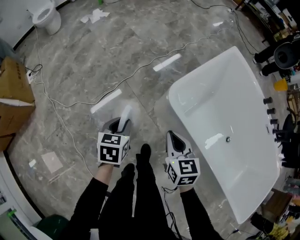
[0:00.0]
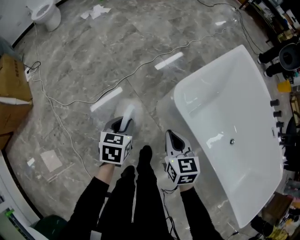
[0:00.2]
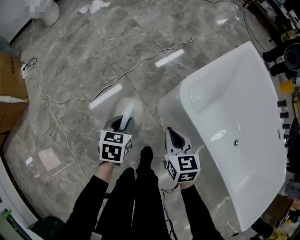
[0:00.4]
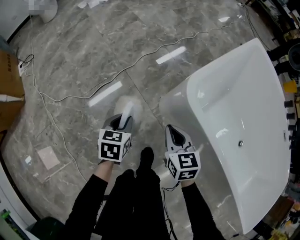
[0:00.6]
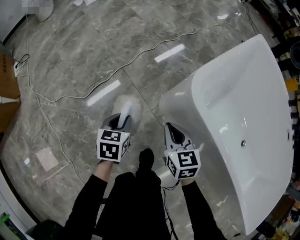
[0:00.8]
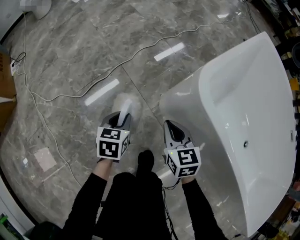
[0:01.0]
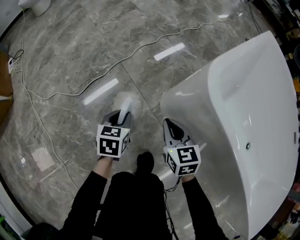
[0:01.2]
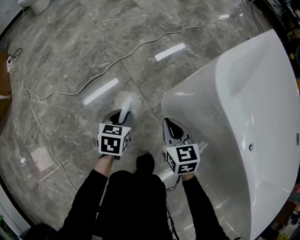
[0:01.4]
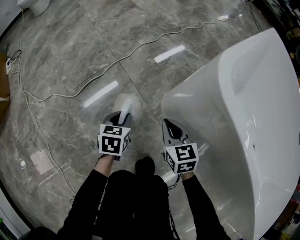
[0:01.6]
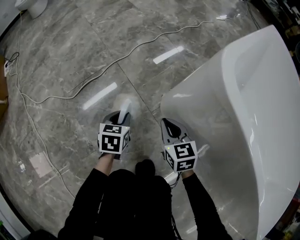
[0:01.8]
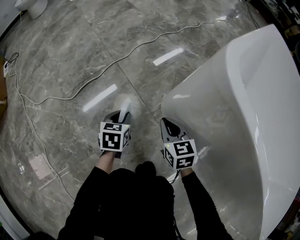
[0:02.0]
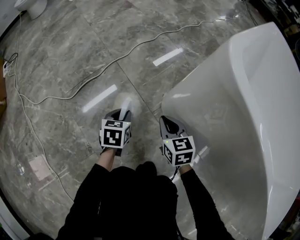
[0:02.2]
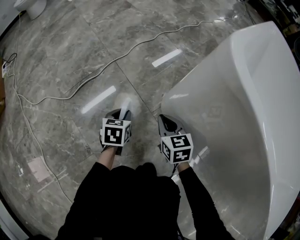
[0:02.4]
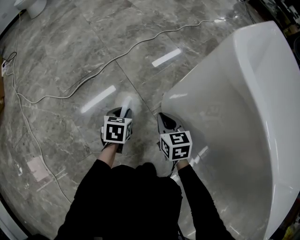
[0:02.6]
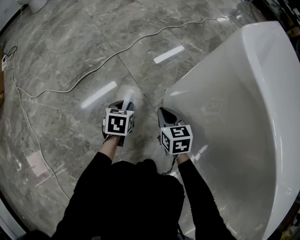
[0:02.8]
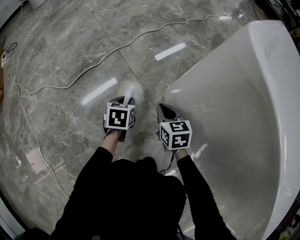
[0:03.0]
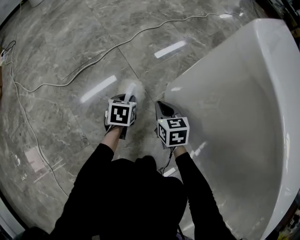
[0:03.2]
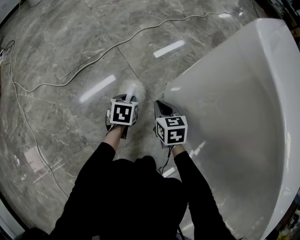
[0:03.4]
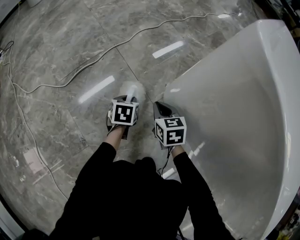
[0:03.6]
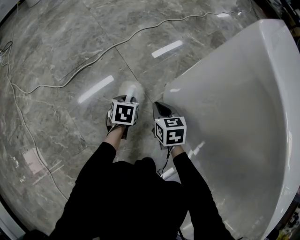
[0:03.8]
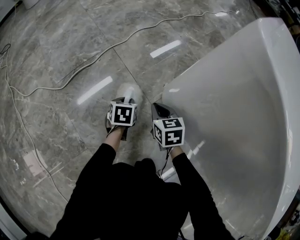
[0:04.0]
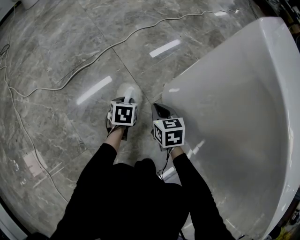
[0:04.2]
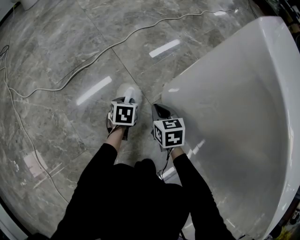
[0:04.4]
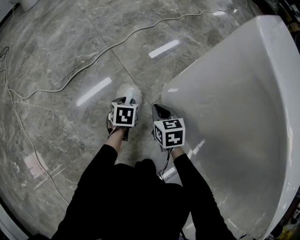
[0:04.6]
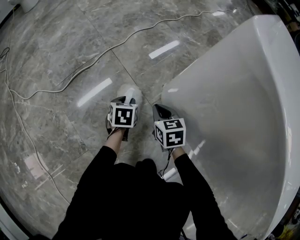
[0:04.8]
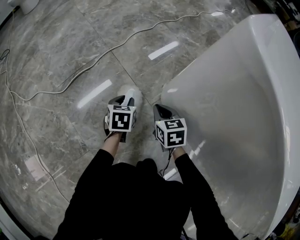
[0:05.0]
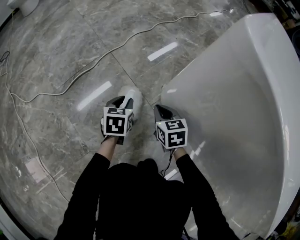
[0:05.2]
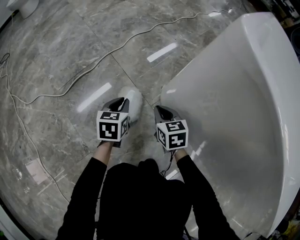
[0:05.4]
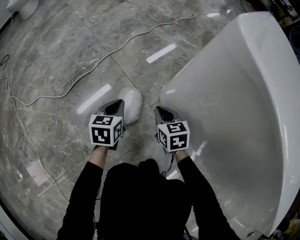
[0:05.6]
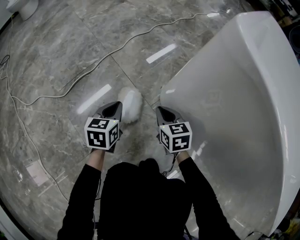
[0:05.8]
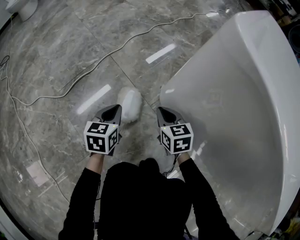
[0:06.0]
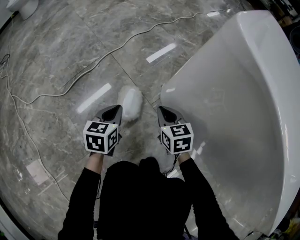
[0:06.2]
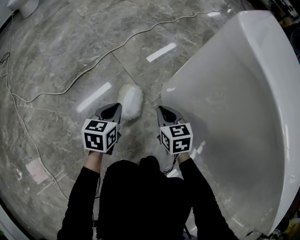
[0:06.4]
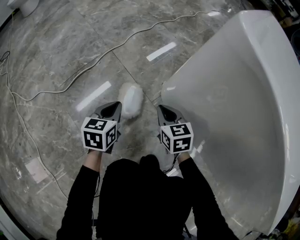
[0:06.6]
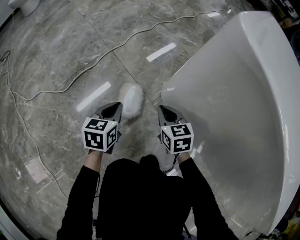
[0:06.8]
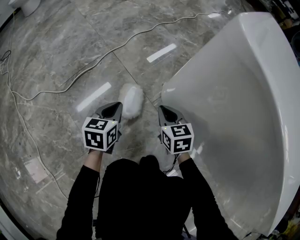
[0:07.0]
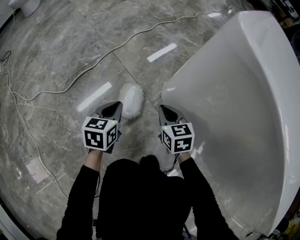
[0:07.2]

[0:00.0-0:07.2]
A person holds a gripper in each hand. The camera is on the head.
0:00.0 to 0:01.4: Both grippers move downward, approximately 35 cm.
0:01.4 to 0:02.8: Both grippers travel together downward, roughly 15 cm.
0:02.8 to 0:04.4: Both grippers move downward, approximately 5 cm.
0:04.4 to 0:05.8: The right gripper ends up some 5 cm from where it was; the left gripper travels upward by about 15 cm, turns by about 20 degrees, and closes its fingers.
0:05.8 to 0:07.2: The grippers make only small movements.

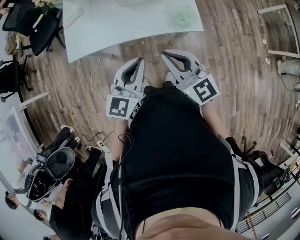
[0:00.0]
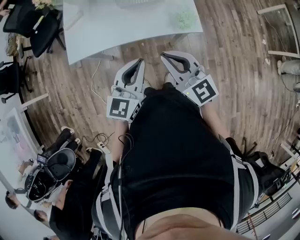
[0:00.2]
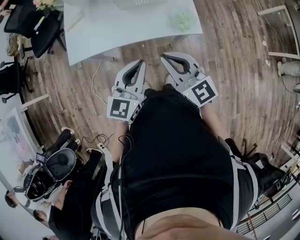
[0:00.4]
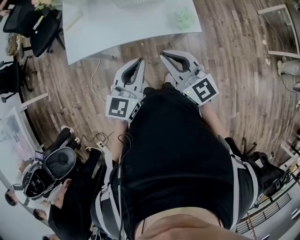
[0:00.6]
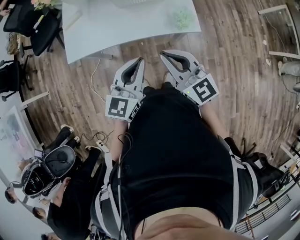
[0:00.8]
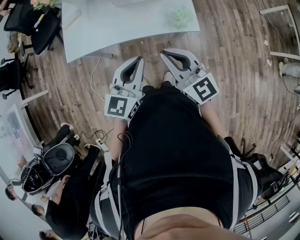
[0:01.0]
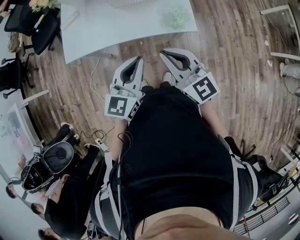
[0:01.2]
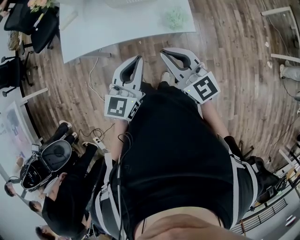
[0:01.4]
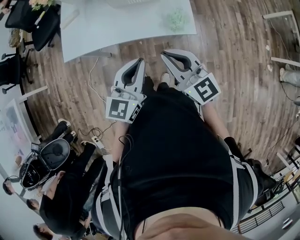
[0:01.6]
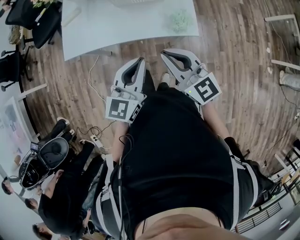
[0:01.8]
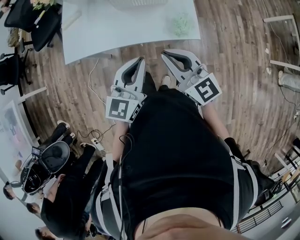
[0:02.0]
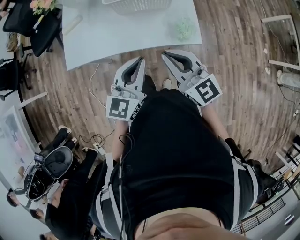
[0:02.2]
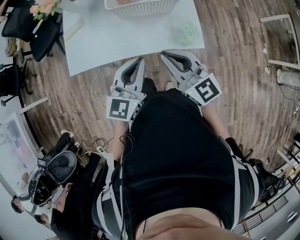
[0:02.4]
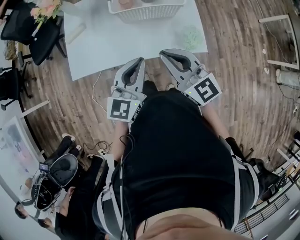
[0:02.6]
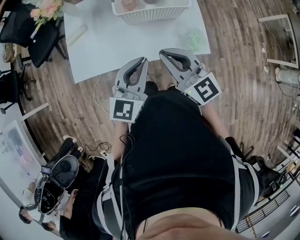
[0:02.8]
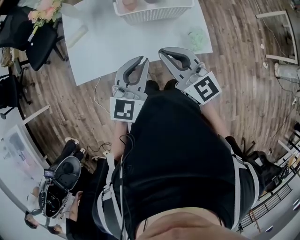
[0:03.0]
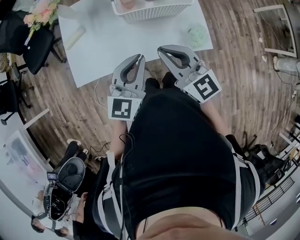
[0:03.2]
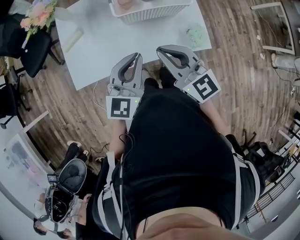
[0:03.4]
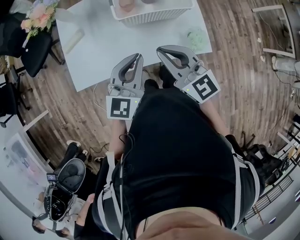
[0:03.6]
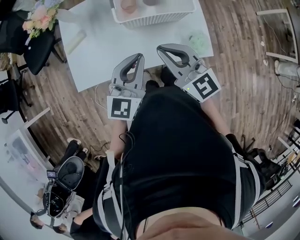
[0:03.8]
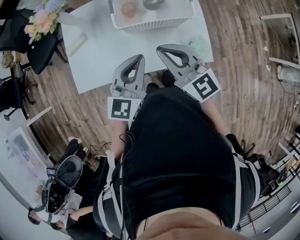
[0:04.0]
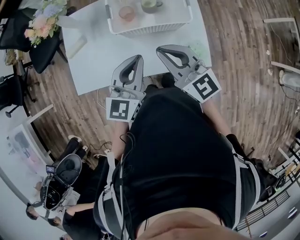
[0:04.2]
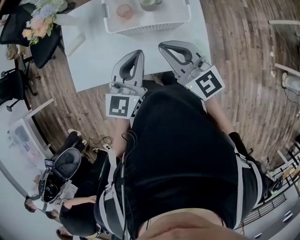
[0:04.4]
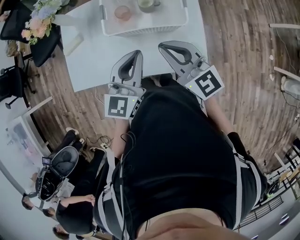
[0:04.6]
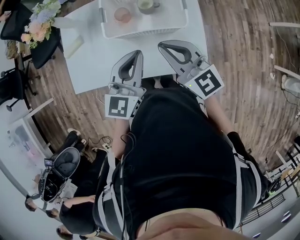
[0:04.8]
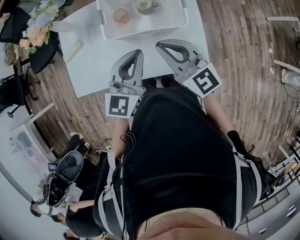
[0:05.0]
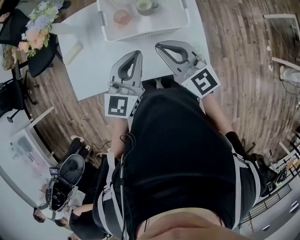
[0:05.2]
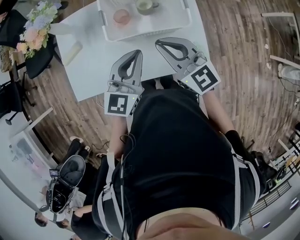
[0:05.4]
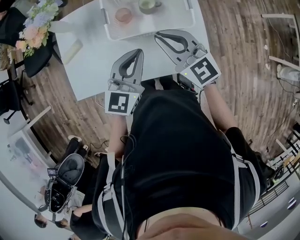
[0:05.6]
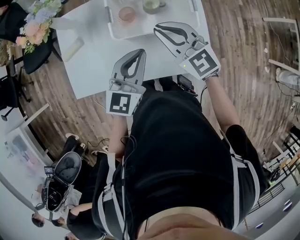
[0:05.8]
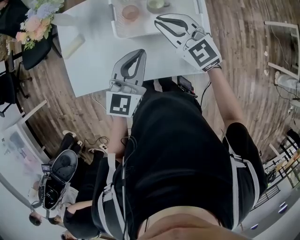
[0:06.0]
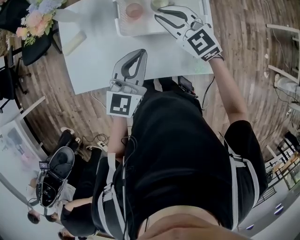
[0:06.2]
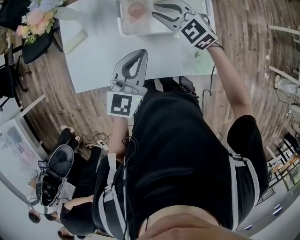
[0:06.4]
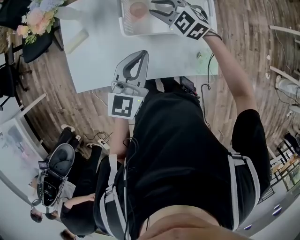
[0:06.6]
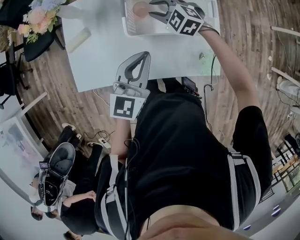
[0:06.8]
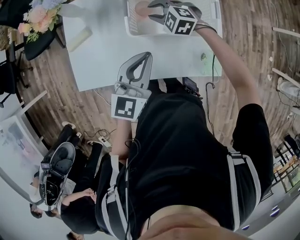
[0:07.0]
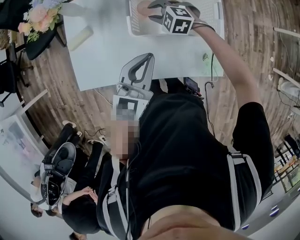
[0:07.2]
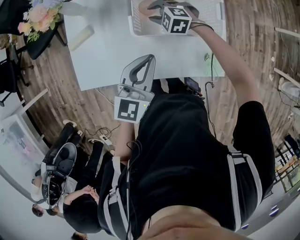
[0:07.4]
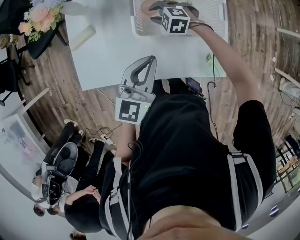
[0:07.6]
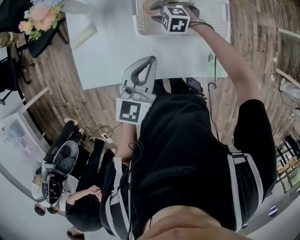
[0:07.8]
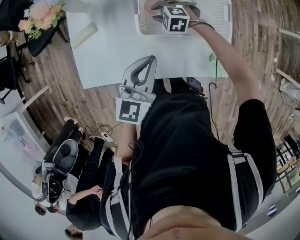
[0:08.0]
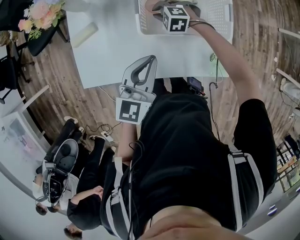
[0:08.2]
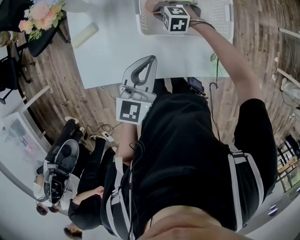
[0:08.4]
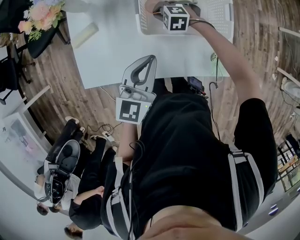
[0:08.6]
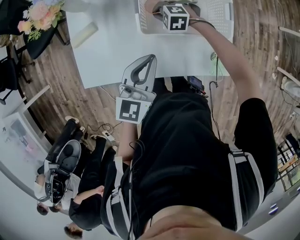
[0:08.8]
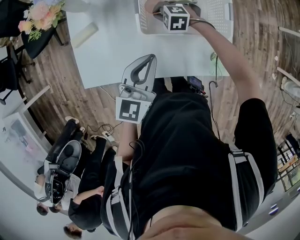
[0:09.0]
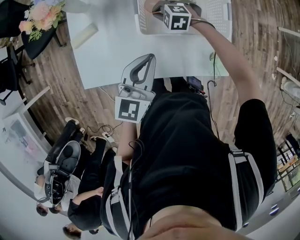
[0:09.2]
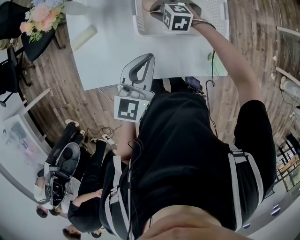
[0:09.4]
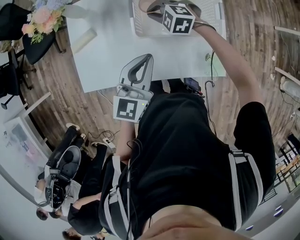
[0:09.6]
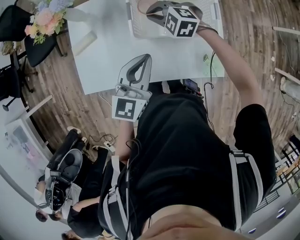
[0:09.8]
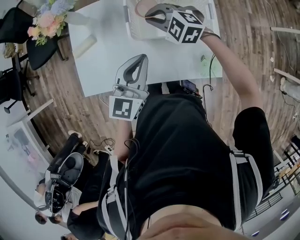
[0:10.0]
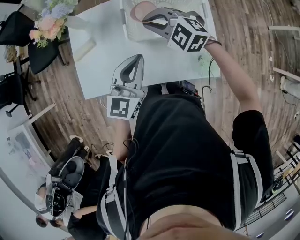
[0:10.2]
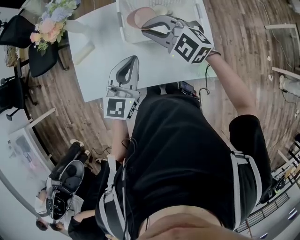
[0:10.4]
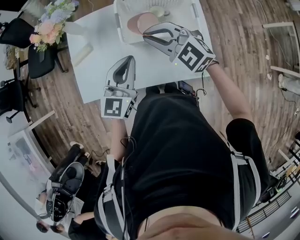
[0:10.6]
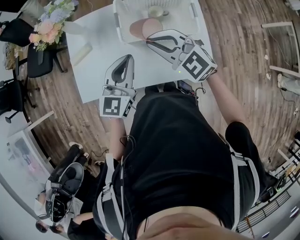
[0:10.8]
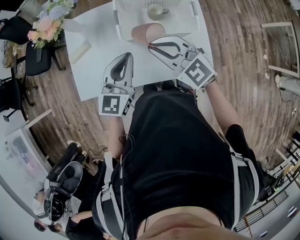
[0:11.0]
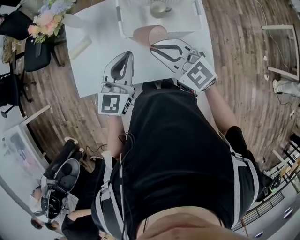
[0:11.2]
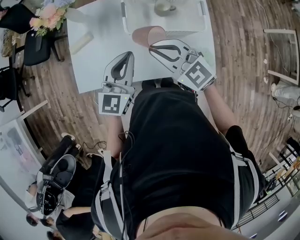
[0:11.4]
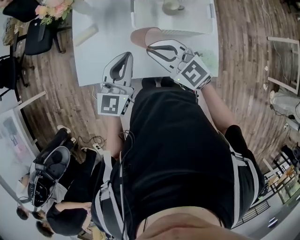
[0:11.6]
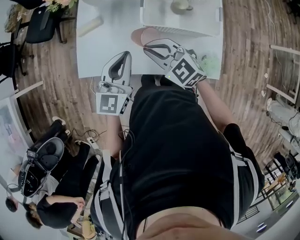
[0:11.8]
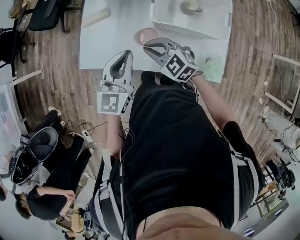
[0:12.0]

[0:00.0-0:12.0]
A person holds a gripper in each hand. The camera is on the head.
0:00.0 to 0:01.6: The two grippers go approximately 10 cm to the right.
0:01.6 to 0:03.0: The grippers both shift forward and to the left by approximately 20 cm.
0:03.0 to 0:04.4: The two grippers go about 15 cm forward and to the right.
0:04.4 to 0:06.0: The right gripper goes approximately 15 cm forward, and changes its angle by approximately 20 degrees. The left gripper shifts roughly 5 cm forward.
0:06.0 to 0:07.6: The right gripper is displaced downward and forward by some 25 cm, angles its fingers downward, by about 40 degrees, and opens up. The left gripper shifts by roughly 5 cm.
0:07.6 to 0:09.0: The right gripper closes.
0:09.0 to 0:10.4: The right gripper travels upward by roughly 25 cm, and points its fingers some 30 degrees further upward. Meanwhile the left gripper shifts approximately 5 cm upward.
0:10.4 to 0:12.0: The left gripper goes approximately 10 cm to the left, while the right gripper shifts some 20 cm to the left, downward and backward.

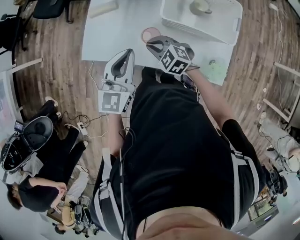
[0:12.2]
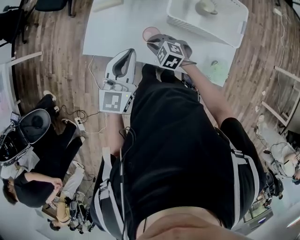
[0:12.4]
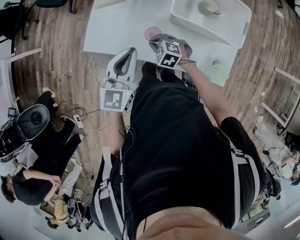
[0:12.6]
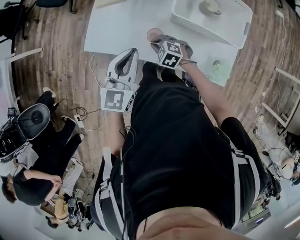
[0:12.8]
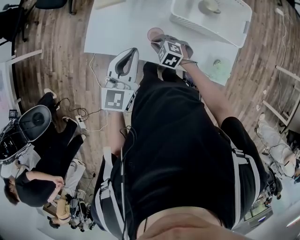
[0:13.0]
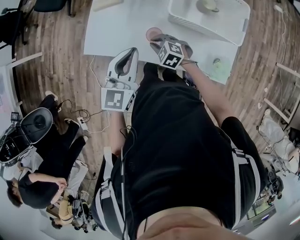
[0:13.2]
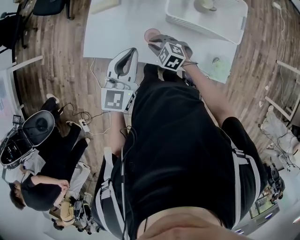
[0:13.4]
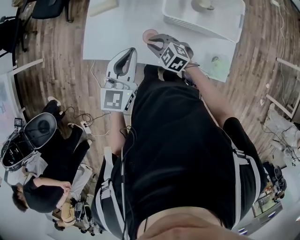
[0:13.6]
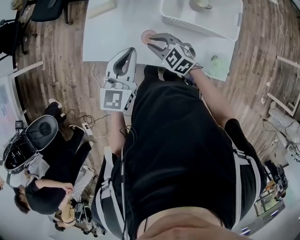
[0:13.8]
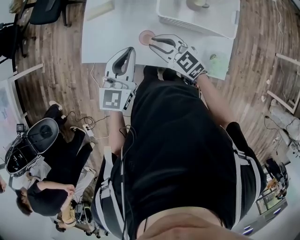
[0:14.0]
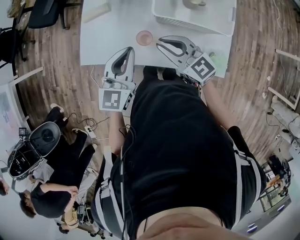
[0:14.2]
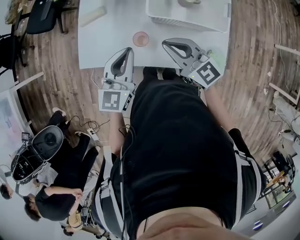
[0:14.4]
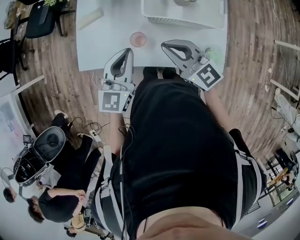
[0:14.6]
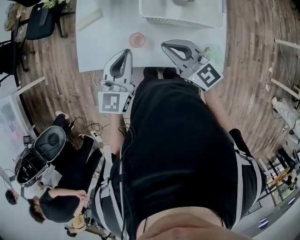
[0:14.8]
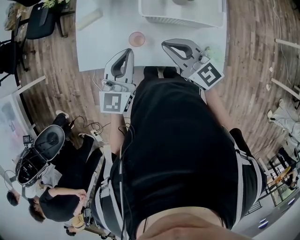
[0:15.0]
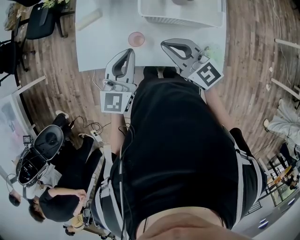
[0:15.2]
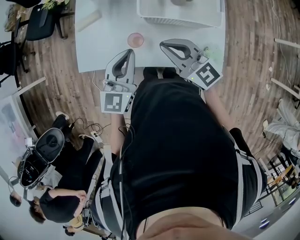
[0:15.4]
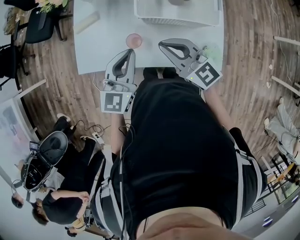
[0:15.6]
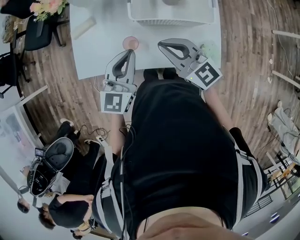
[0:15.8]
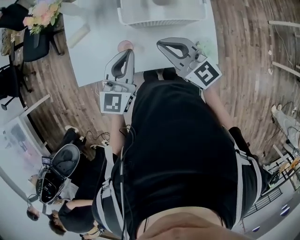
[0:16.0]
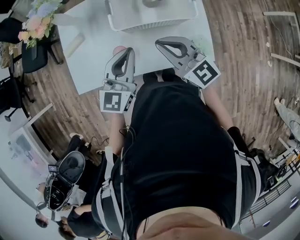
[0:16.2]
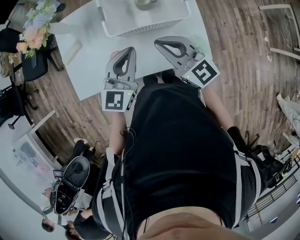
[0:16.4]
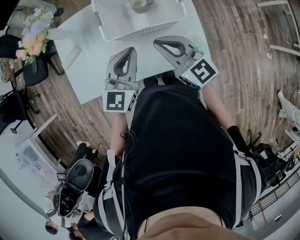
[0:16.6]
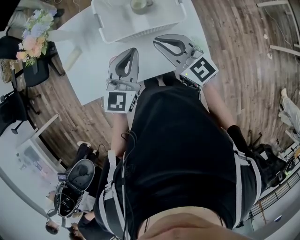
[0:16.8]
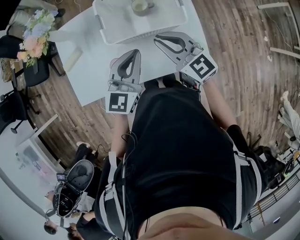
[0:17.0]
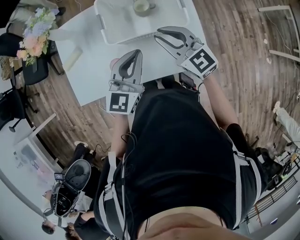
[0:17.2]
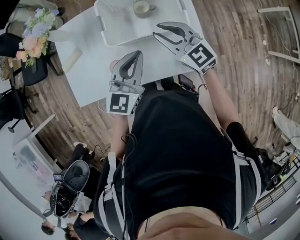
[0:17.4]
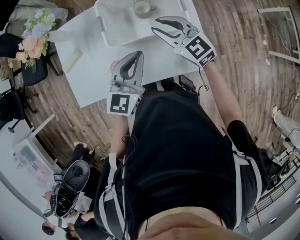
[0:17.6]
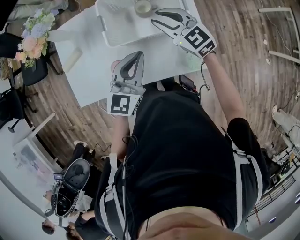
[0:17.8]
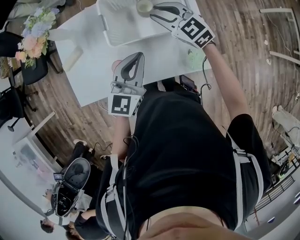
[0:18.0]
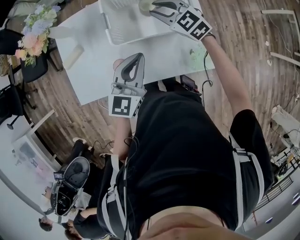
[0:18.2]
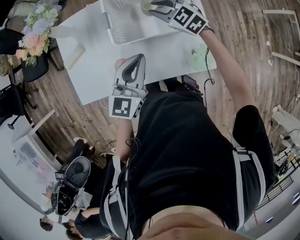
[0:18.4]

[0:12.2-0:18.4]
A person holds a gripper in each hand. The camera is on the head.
0:12.2 to 0:13.8: The right gripper goes downward and returns, roughly 10 cm each way.
0:13.8 to 0:15.4: The left gripper shifts about 5 cm to the right. Meanwhile the right gripper goes some 20 cm upward and to the right, and tilts its fingers some 30 degrees upward.
0:15.4 to 0:16.8: Both grippers travel together to the right, roughly 10 cm.
0:16.8 to 0:18.4: The right gripper heads forward and downward, covering roughly 20 cm, and rotates approximately 30 degrees.
